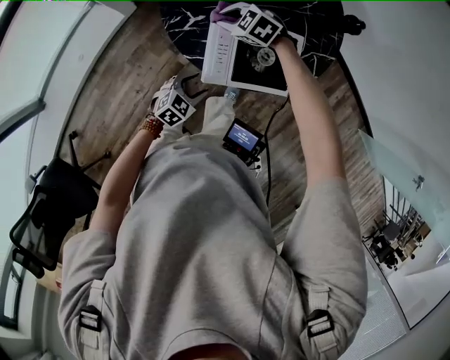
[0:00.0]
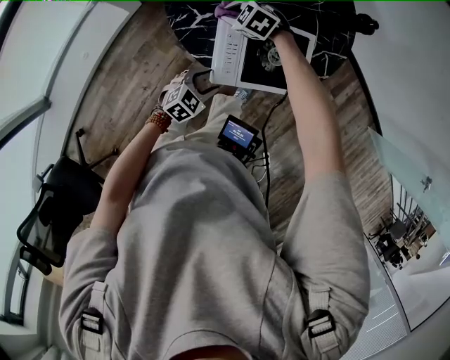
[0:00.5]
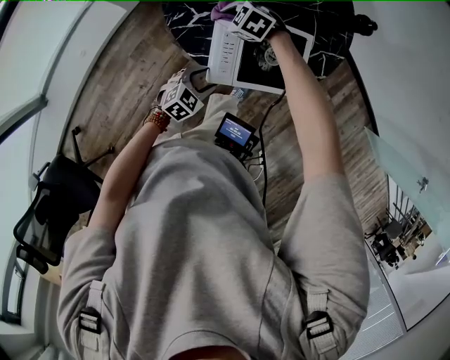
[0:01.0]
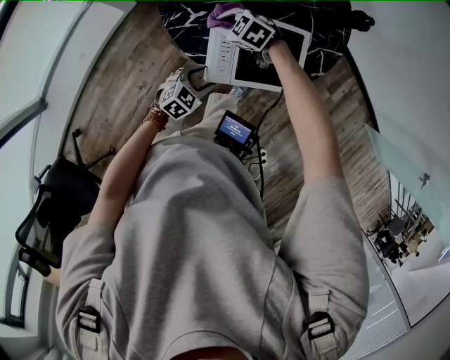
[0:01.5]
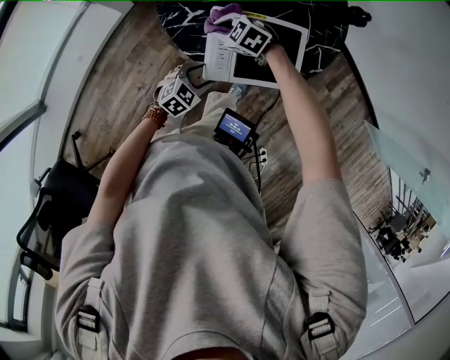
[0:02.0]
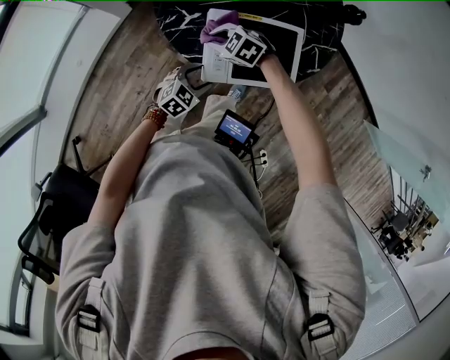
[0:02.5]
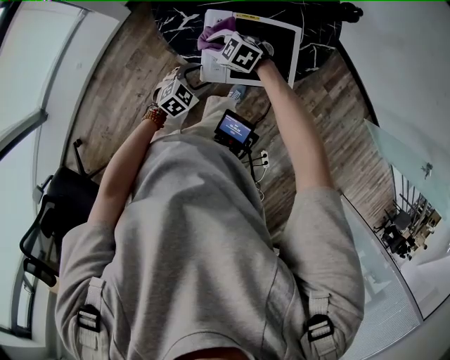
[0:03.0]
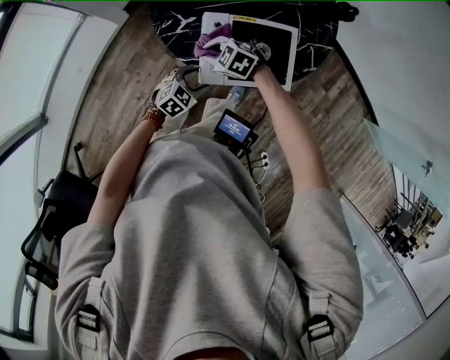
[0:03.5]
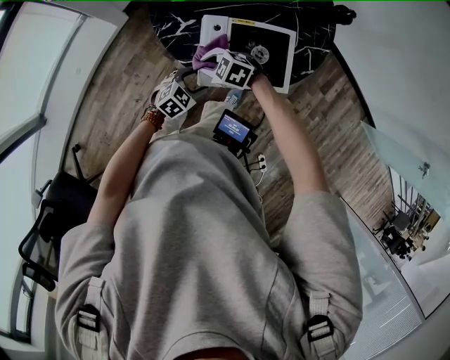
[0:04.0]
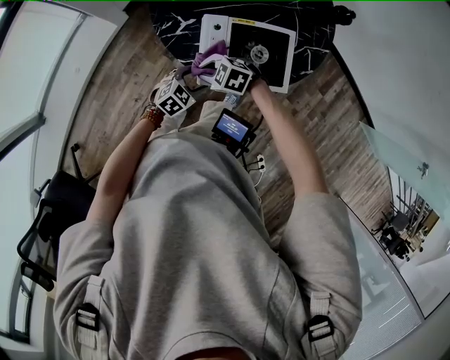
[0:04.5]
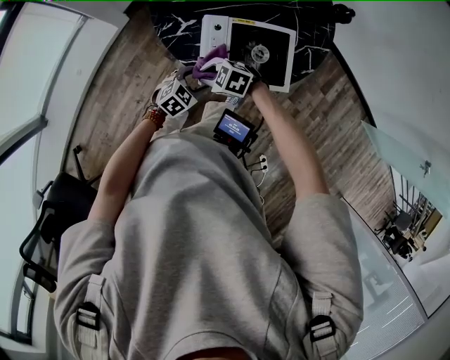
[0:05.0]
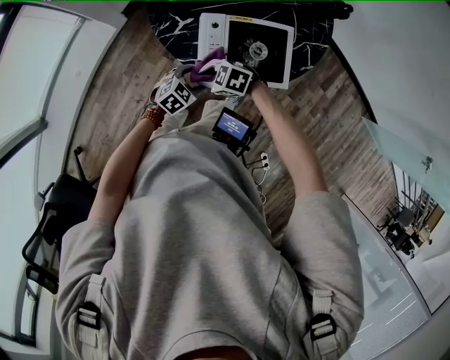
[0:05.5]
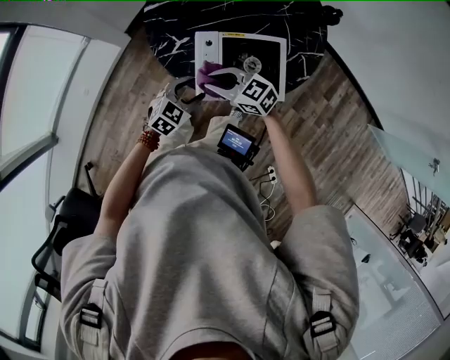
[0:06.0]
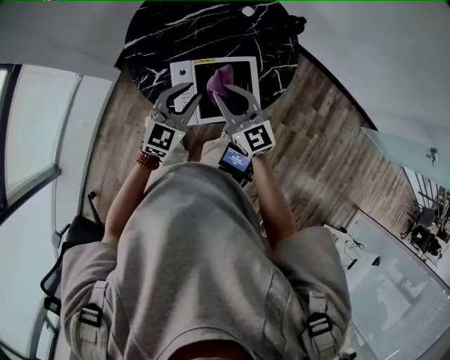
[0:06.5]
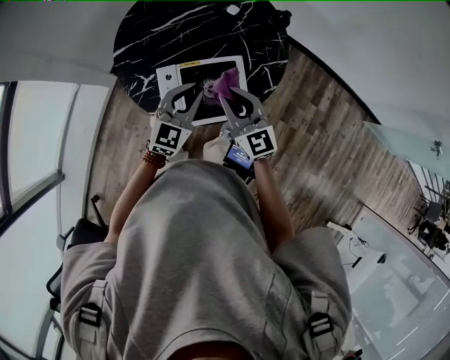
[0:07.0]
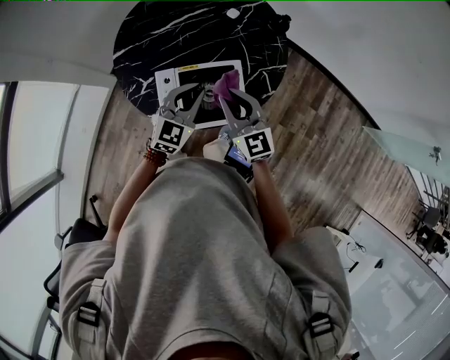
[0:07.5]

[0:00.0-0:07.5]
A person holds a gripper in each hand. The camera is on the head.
0:00.0 to 0:02.0: The right gripper moves downward, roughly 5 cm.
0:02.0 to 0:04.0: The right gripper ends up approximately 10 cm from where it was.
0:04.0 to 0:05.5: The right gripper changes place by about 5 cm.
0:05.5 to 0:07.5: The right gripper shifts by approximately 35 cm, and points its fingers approximately 40 degrees further upward. Meanwhile the left gripper moves upward, approximately 25 cm, changes its angle by approximately 30 degrees, and closes its fingers.

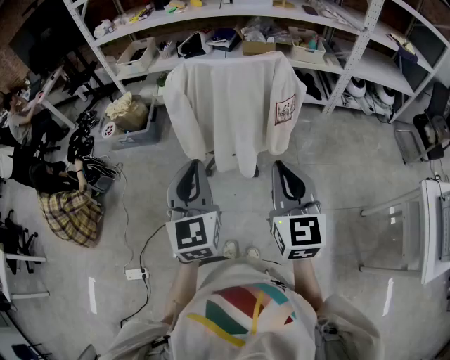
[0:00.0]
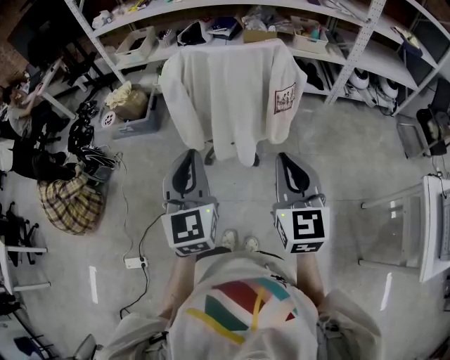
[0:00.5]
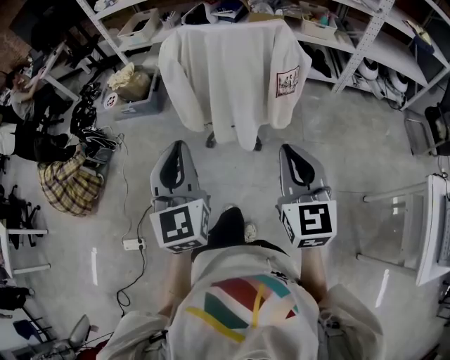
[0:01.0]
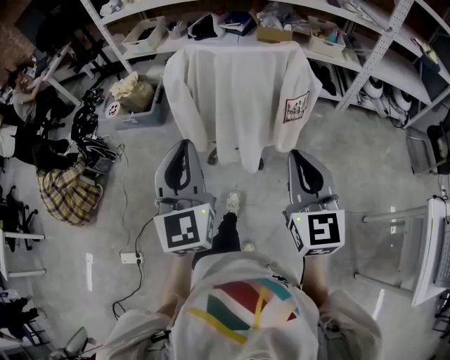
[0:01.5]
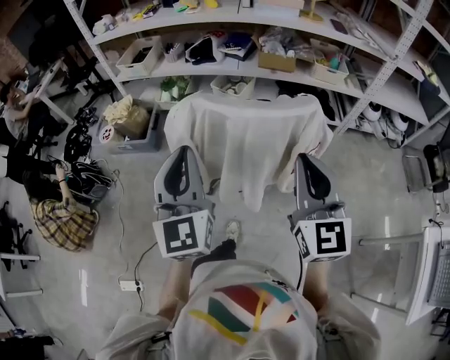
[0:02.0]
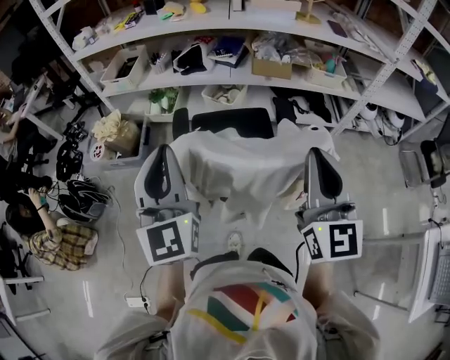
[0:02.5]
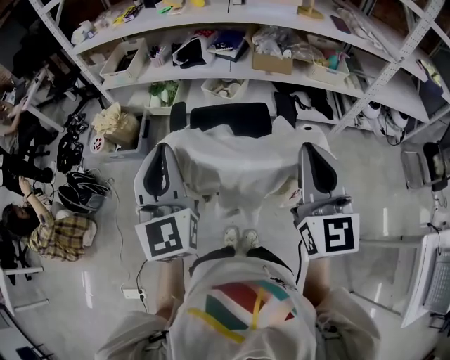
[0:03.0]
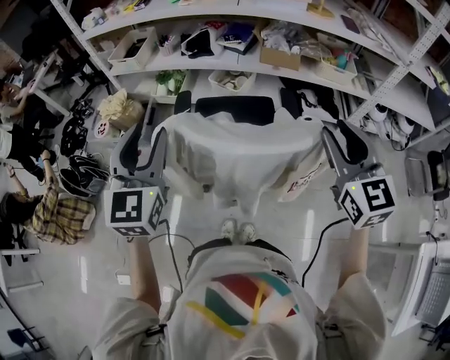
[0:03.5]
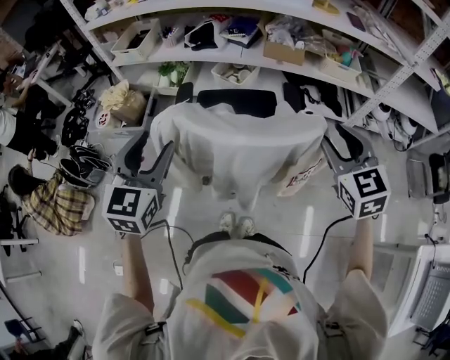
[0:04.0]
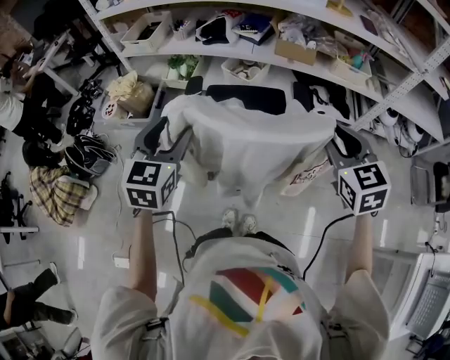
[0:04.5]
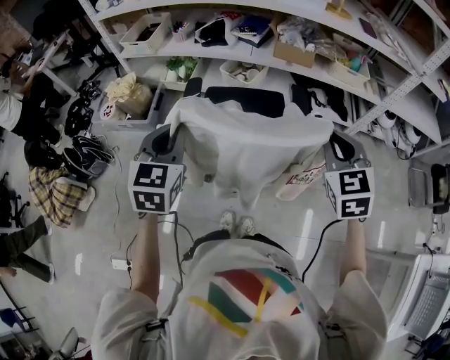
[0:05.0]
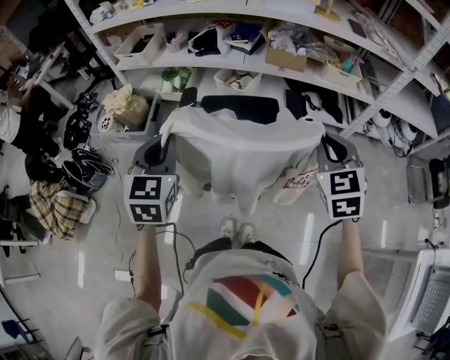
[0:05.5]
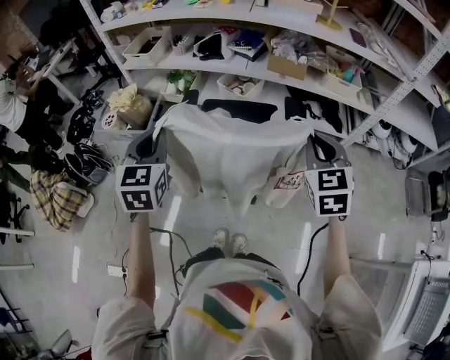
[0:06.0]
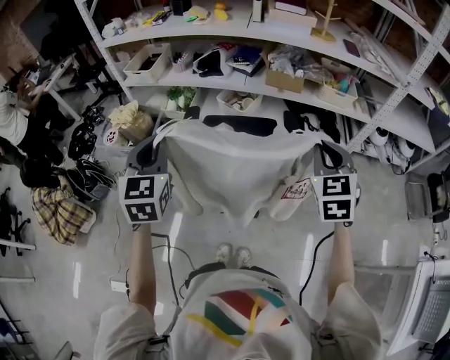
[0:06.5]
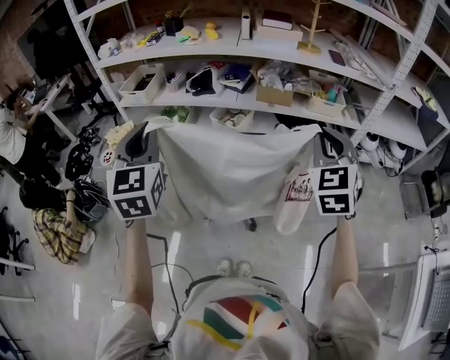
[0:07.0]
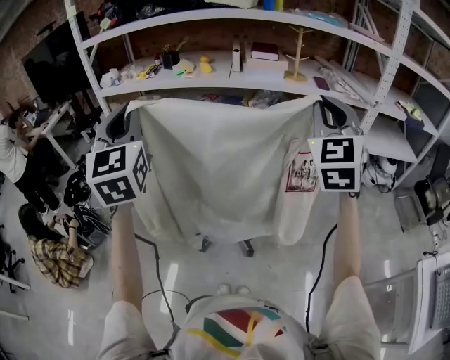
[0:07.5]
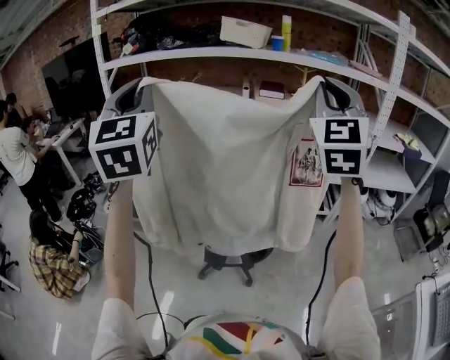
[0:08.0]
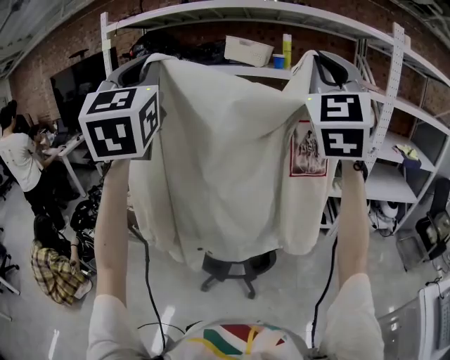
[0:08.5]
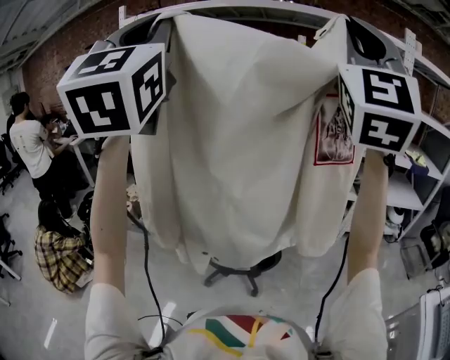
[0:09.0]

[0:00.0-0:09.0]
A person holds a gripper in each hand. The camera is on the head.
0:00.0 to 0:02.0: The two grippers go roughly 20 cm forward.
0:02.0 to 0:04.5: The right gripper goes some 20 cm forward, to the right and downward, turns by some 30 degrees, and opens. Meanwhile the left gripper goes about 15 cm forward and downward, swivels about 30 degrees, and opens its fingers.
0:04.5 to 0:07.0: The grippers both shift upward by about 15 cm. The left gripper changes its angle by approximately 20 degrees, and closes up, while the right gripper turns by some 30 degrees, and closes its fingers.
0:07.0 to 0:09.0: Both grippers move upward and backward, some 50 cm. The left gripper angles its fingers upward, by approximately 40 degrees; the right gripper tips its fingers upward by roughly 50 degrees.

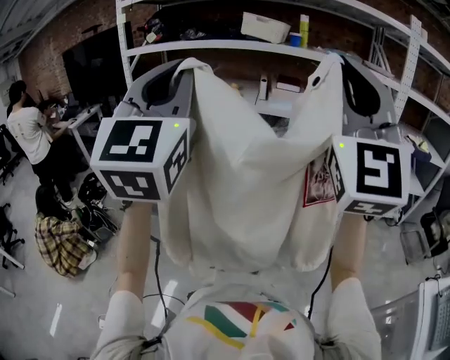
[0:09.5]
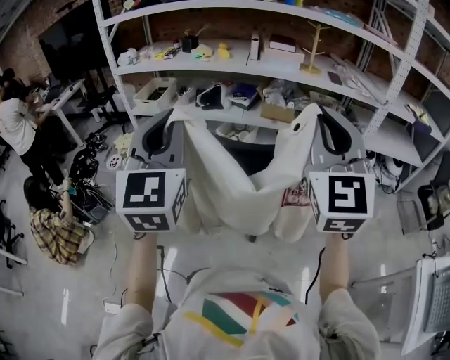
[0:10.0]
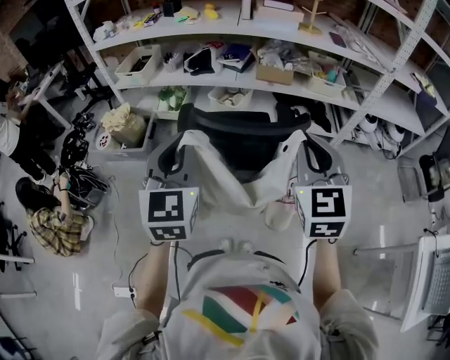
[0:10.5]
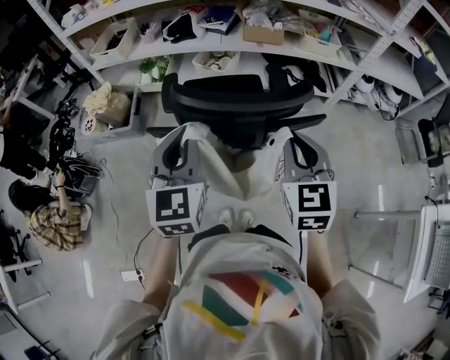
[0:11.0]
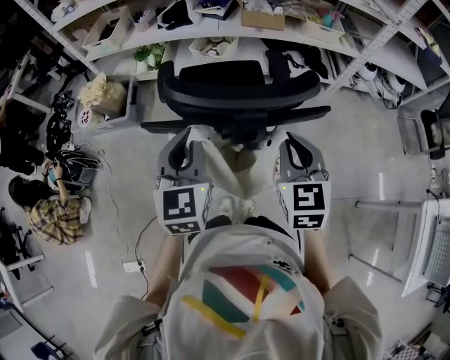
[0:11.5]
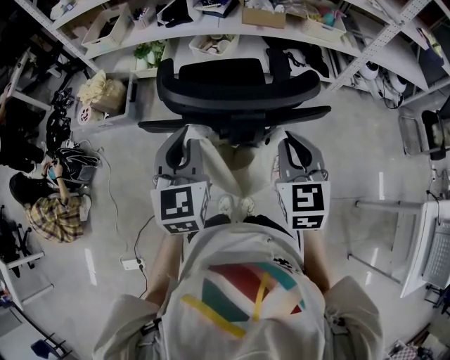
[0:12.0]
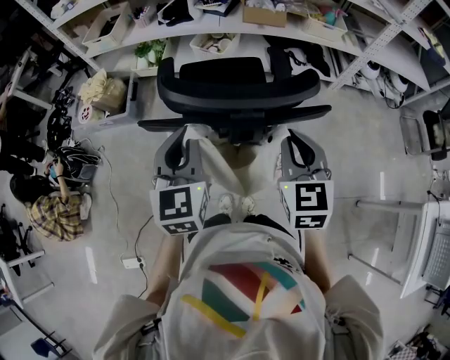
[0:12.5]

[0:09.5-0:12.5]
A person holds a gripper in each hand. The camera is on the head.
0:09.5 to 0:11.0: Both grippers travel together downward, some 40 cm. The left gripper points its fingers about 30 degrees further downward; the right gripper tips its fingers downward by approximately 50 degrees.
0:11.0 to 0:12.5: The grippers make only small movements.

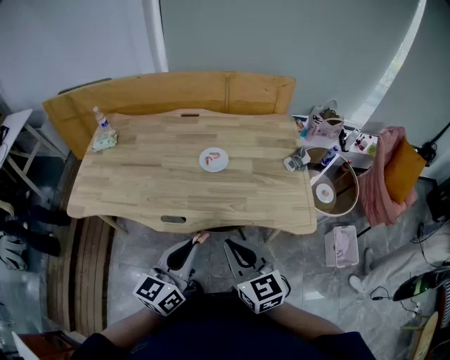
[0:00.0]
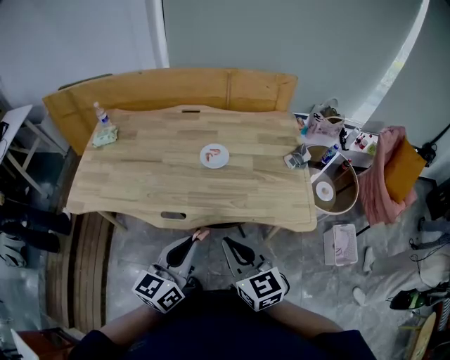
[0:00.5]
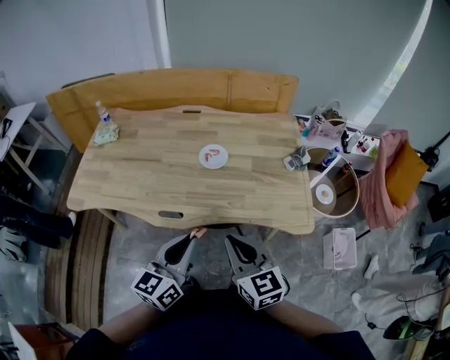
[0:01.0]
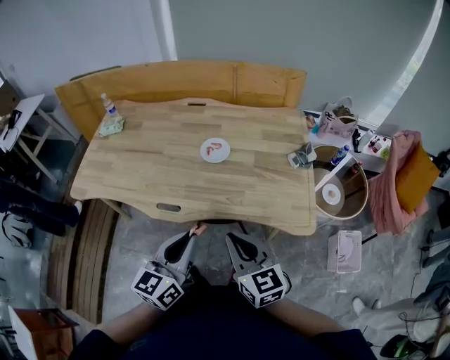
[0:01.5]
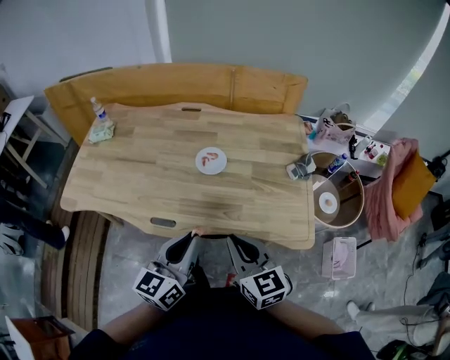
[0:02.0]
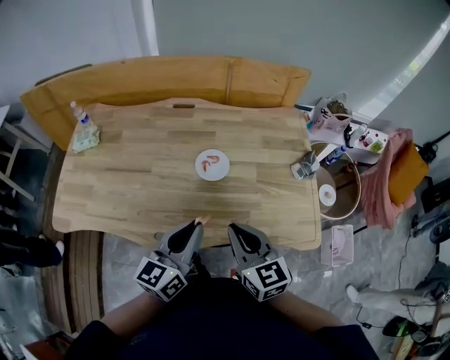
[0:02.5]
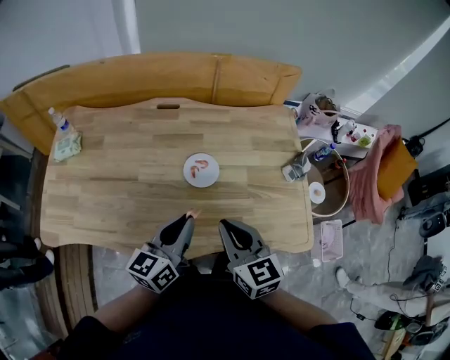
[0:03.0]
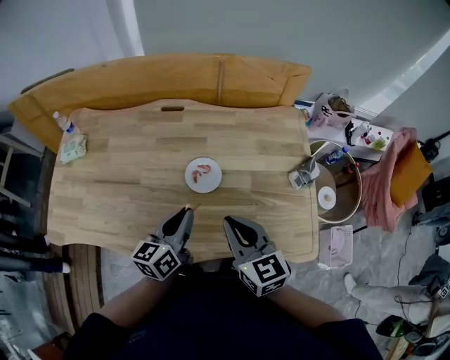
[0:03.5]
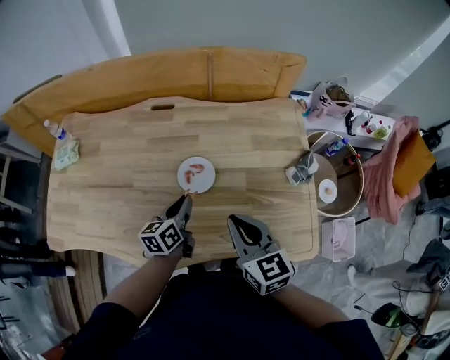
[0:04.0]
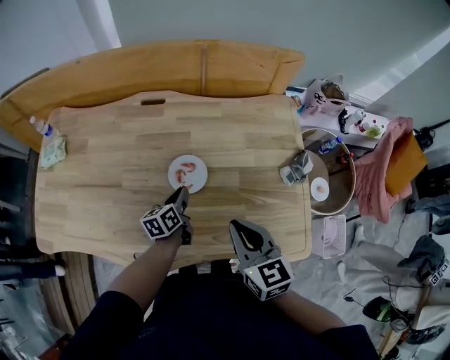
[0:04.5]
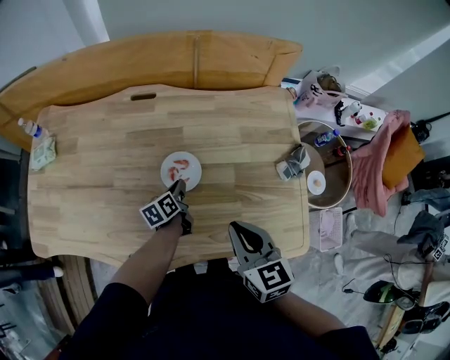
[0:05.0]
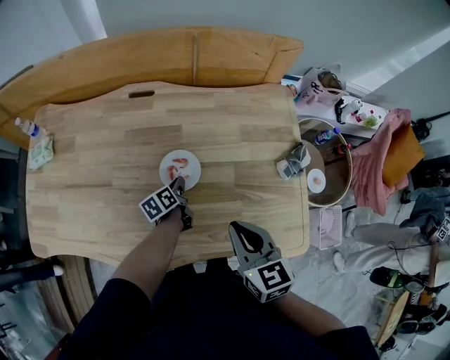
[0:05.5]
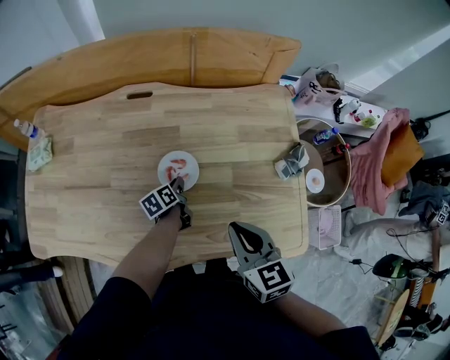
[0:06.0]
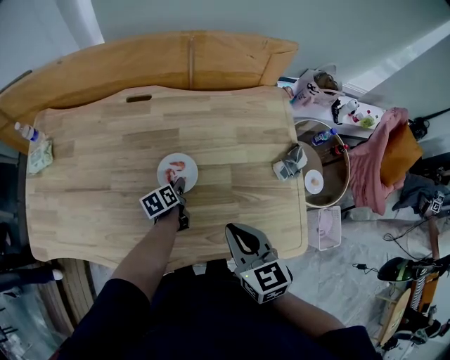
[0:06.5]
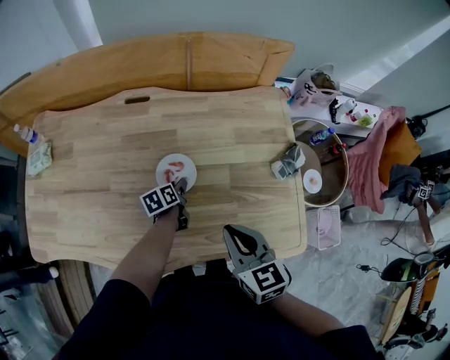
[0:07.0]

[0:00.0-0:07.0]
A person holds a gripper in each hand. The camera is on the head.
0:00.0 to 0:02.0: The left gripper heads forward, covering approximately 10 cm. Meanwhile the right gripper shifts approximately 10 cm forward and to the right.
0:02.0 to 0:03.5: Both grippers move forward, roughly 20 cm.
0:03.5 to 0:05.0: The right gripper travels to the right and downward by some 10 cm, while the left gripper goes some 25 cm downward and forward, and swivels about 30 degrees.
0:05.0 to 0:07.0: The left gripper opens.
